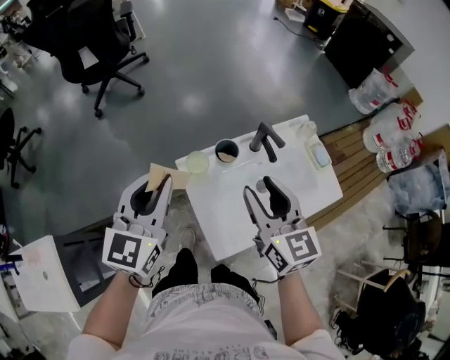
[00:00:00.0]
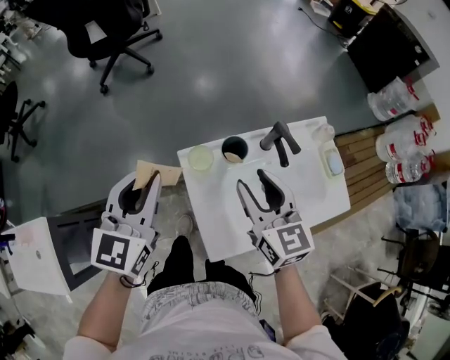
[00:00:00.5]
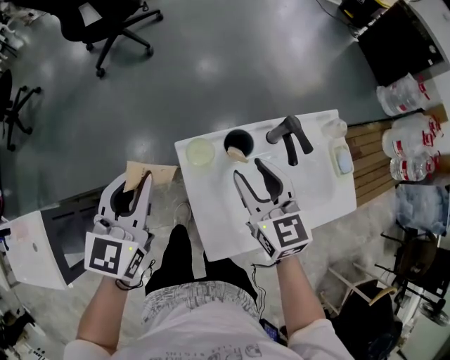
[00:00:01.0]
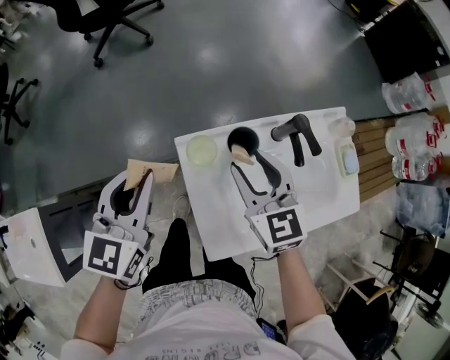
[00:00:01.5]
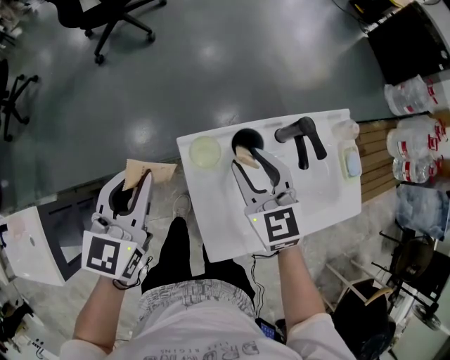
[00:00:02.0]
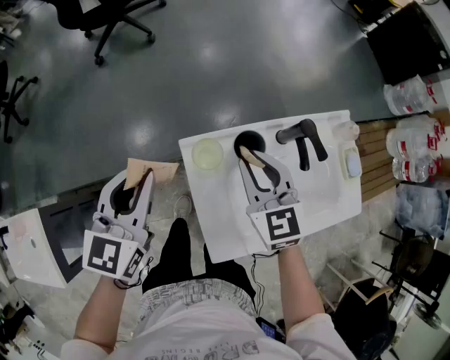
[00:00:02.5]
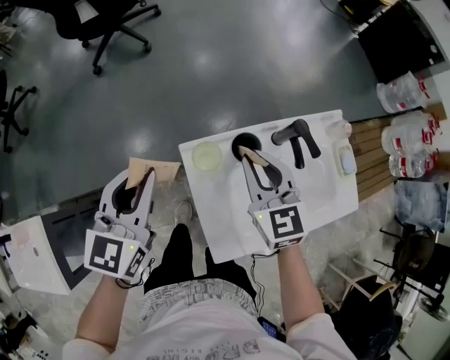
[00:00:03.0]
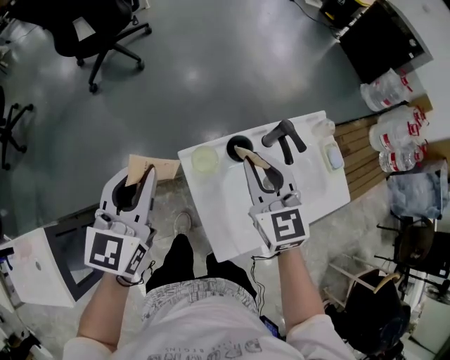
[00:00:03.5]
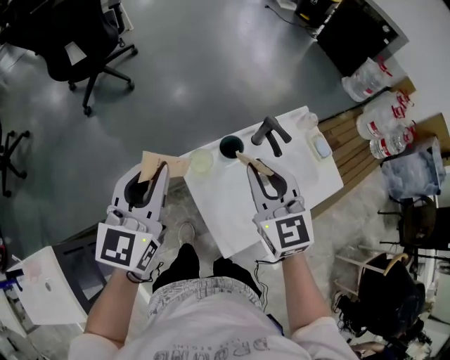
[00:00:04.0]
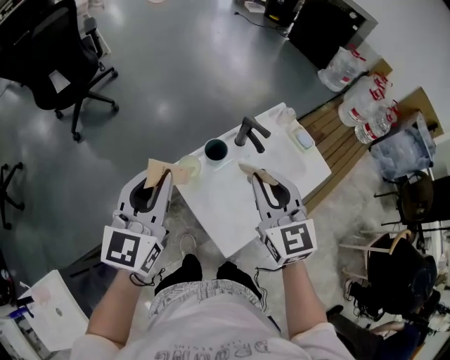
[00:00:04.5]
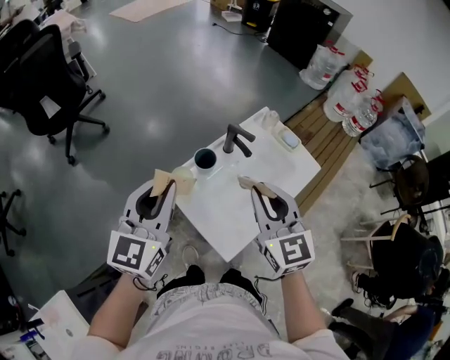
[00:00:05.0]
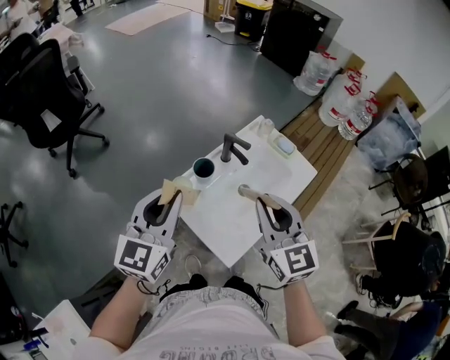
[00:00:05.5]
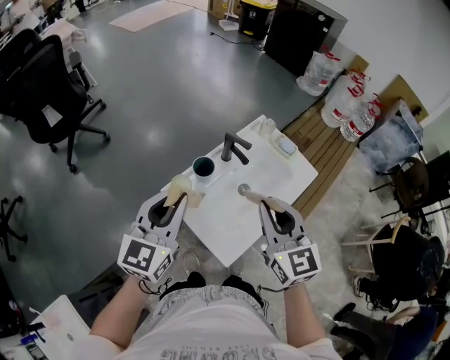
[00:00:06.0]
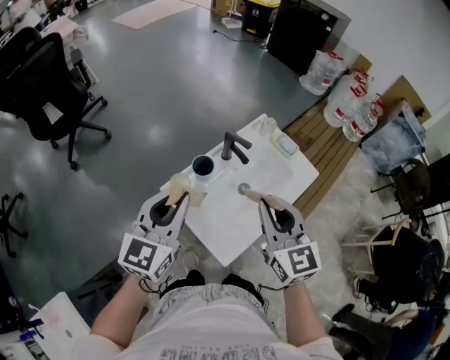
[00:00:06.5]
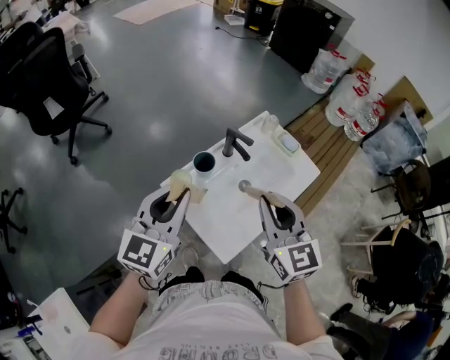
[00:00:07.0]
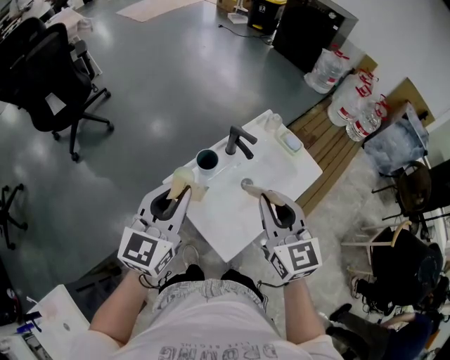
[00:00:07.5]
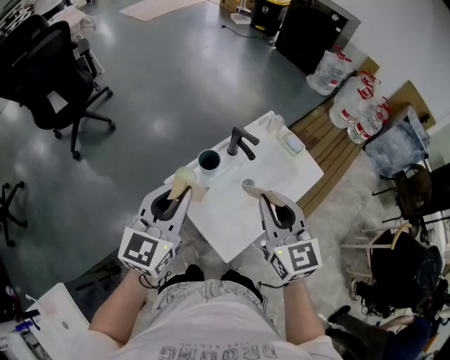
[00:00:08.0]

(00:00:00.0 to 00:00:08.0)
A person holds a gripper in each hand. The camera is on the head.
00:00:00.0 - 00:00:02.0: The left gripper moves downward, roughly 10 cm. The right gripper travels downward, forward and to the left by about 15 cm, and swivels some 20 degrees.
00:00:02.0 - 00:00:04.0: The left gripper moves upward, some 10 cm. The right gripper shifts some 15 cm upward and backward, and closes up.
00:00:04.0 - 00:00:06.0: The left gripper is displaced to the right by some 10 cm, and changes its angle by approximately 20 degrees. Meanwhile the right gripper moves to the right and backward, some 15 cm.
00:00:06.0 - 00:00:08.0: The grippers make only small movements.

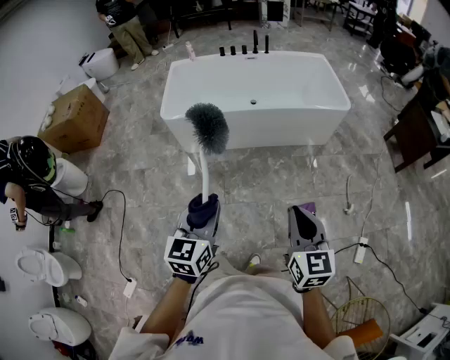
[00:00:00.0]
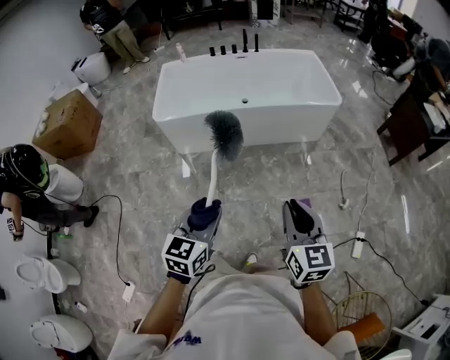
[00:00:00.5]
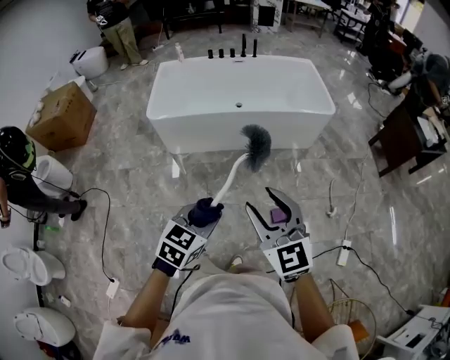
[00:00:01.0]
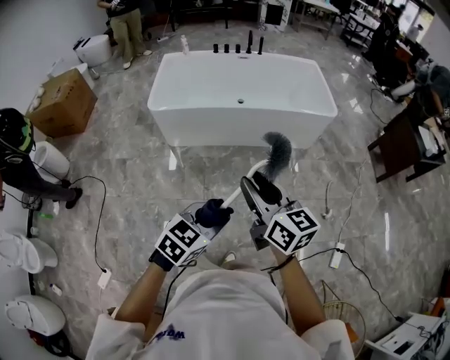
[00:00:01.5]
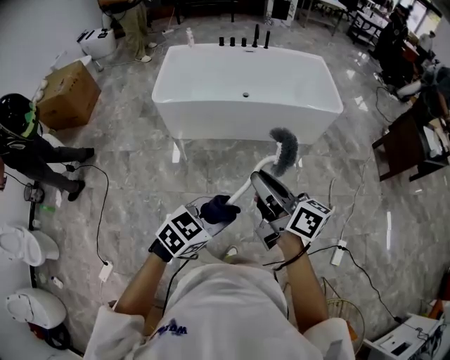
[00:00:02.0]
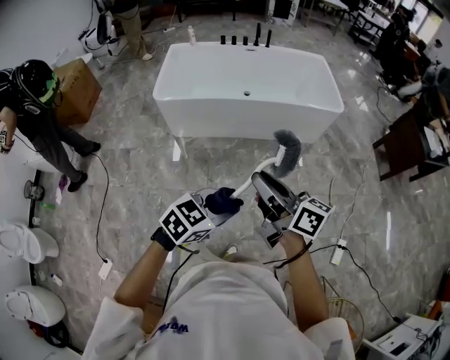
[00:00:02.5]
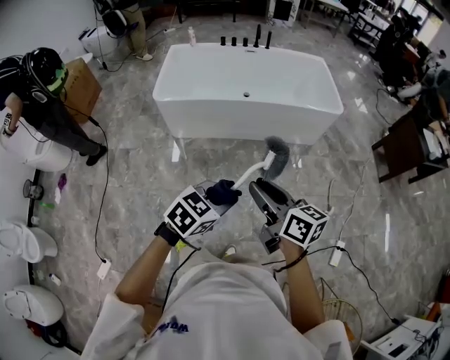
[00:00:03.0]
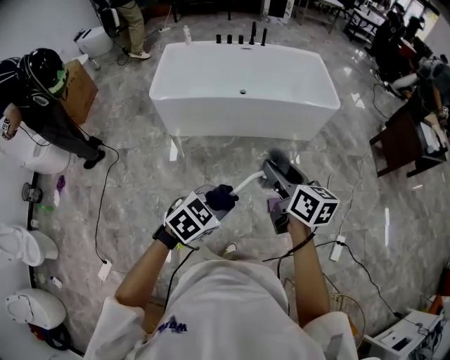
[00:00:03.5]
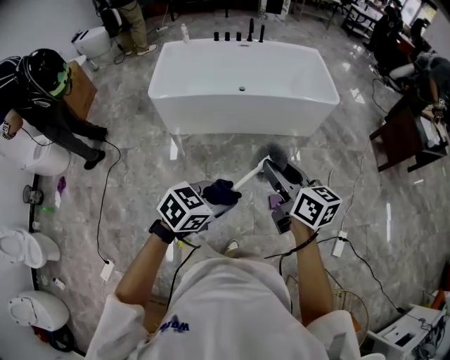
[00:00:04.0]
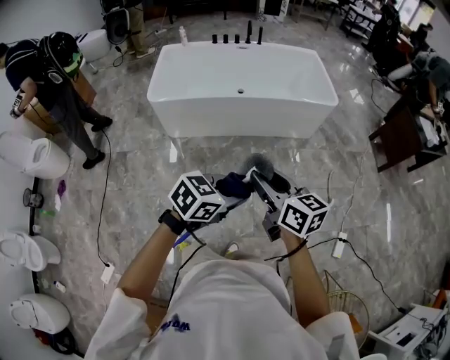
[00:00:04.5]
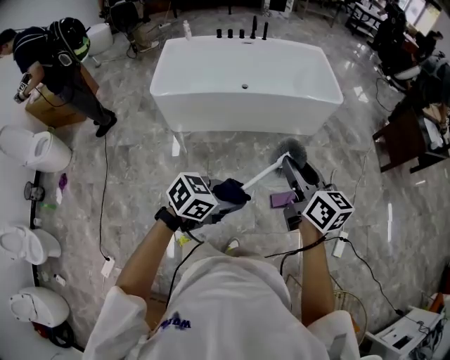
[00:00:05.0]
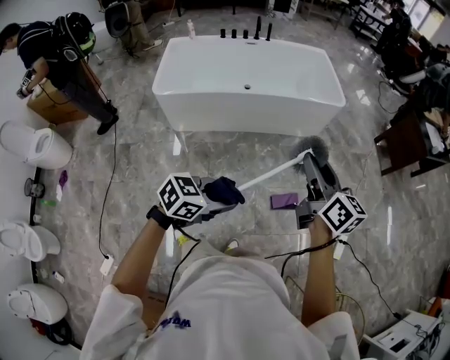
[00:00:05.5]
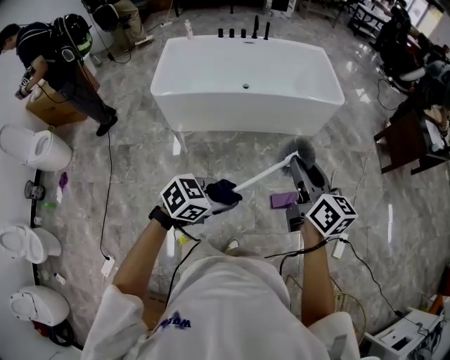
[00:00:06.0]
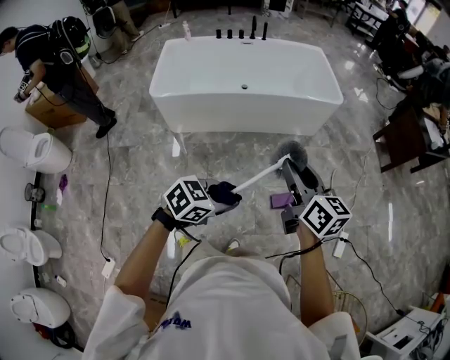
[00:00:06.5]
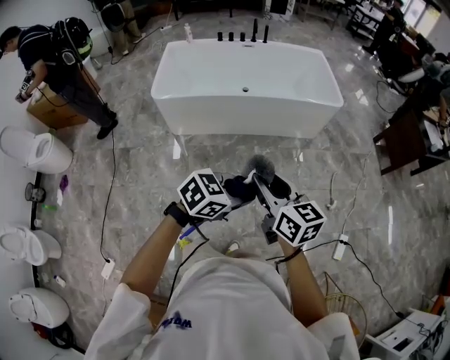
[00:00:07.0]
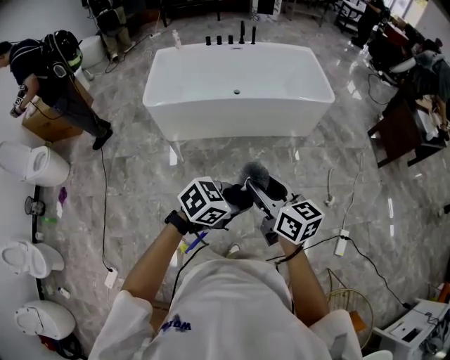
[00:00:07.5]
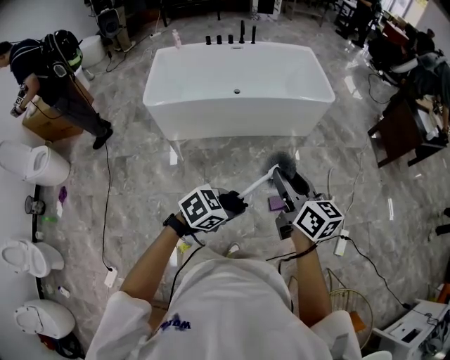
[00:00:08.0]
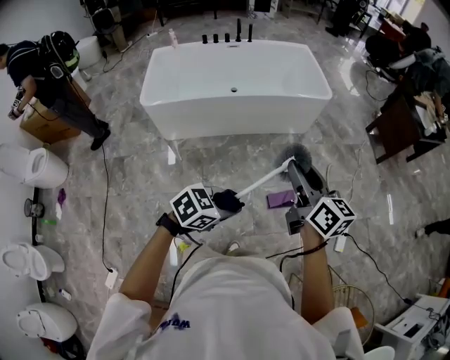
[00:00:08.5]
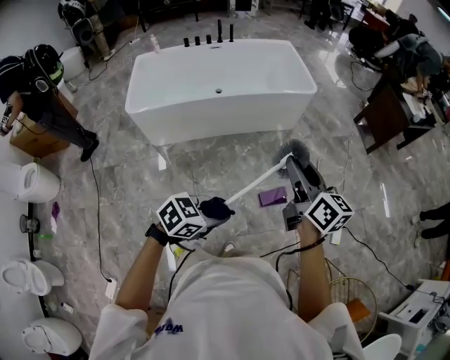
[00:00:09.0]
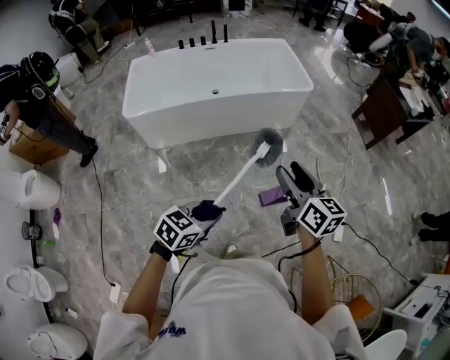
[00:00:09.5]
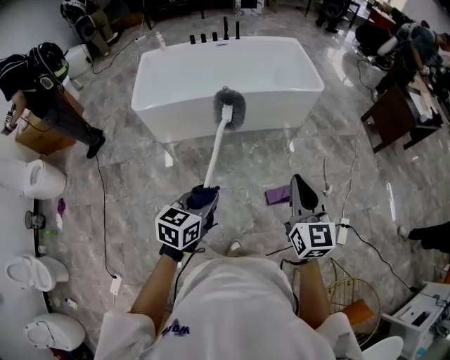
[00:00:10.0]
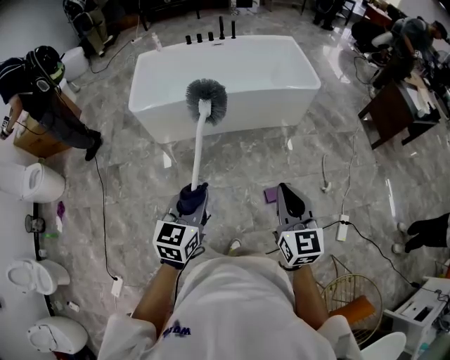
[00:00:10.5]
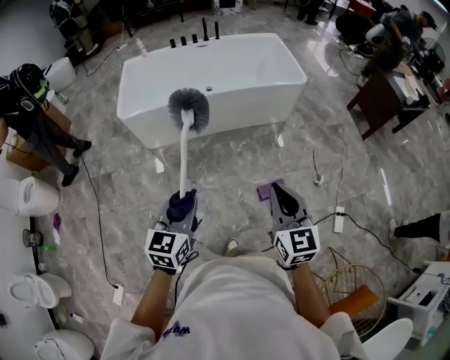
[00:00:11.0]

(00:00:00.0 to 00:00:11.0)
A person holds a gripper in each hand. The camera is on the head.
00:00:00.0 - 00:00:02.0: The left gripper moves to the right, some 10 cm, and turns by some 40 degrees; the right gripper goes roughly 10 cm to the left and forward, changes its angle by approximately 50 degrees, and opens, then closes again.
00:00:02.0 - 00:00:03.5: The right gripper shifts by some 5 cm, changes its angle by about 30 degrees, and opens its fingers.
00:00:03.5 - 00:00:05.5: The right gripper is displaced to the right by some 10 cm, while the left gripper turns by approximately 20 degrees.
00:00:05.5 - 00:00:07.5: The left gripper is displaced to the right by about 5 cm, while the right gripper heads backward, to the left and downward, covering approximately 15 cm.
00:00:07.5 - 00:00:09.0: The left gripper shifts by approximately 5 cm. The right gripper is displaced to the right, forward and upward by roughly 15 cm, and changes its angle by roughly 20 degrees.
00:00:09.0 - 00:00:11.0: The right gripper shifts by roughly 10 cm, rotates roughly 30 degrees, and closes. The left gripper ends up roughly 10 cm from where it was, and turns by approximately 50 degrees.

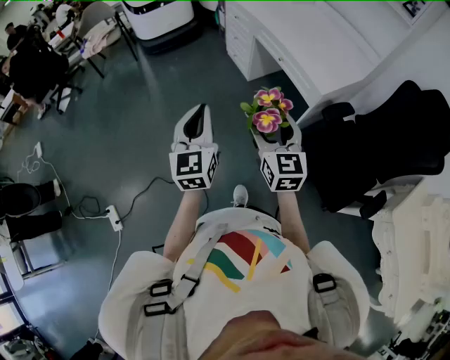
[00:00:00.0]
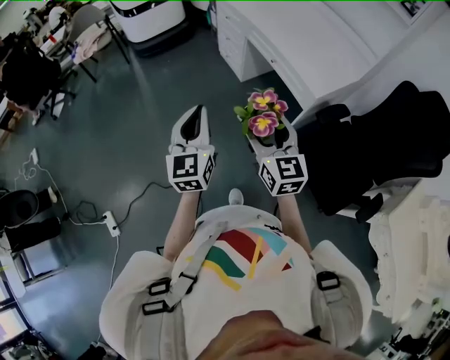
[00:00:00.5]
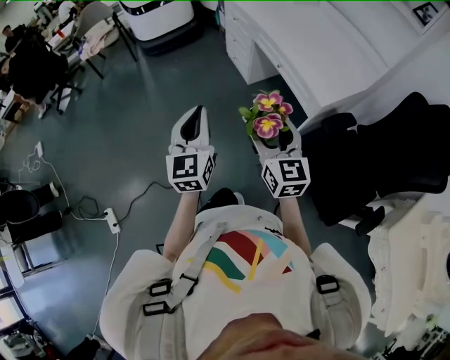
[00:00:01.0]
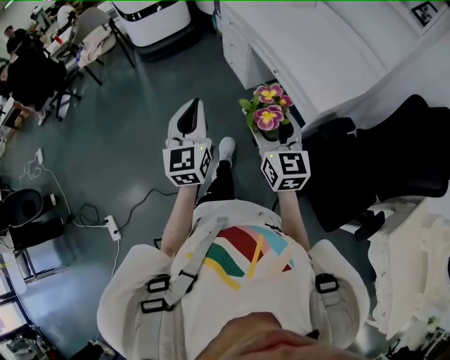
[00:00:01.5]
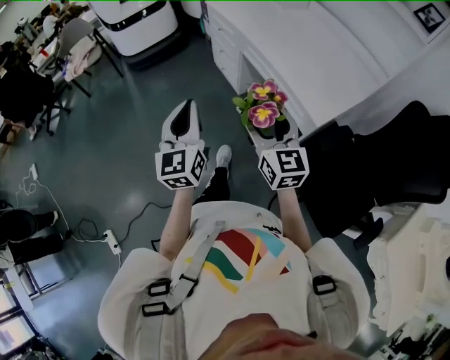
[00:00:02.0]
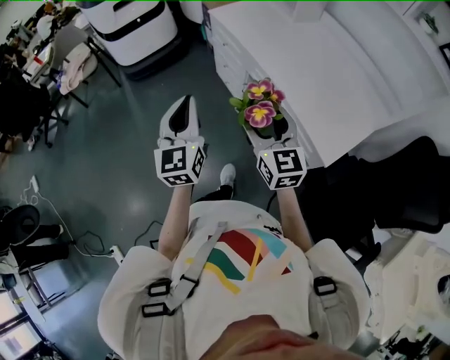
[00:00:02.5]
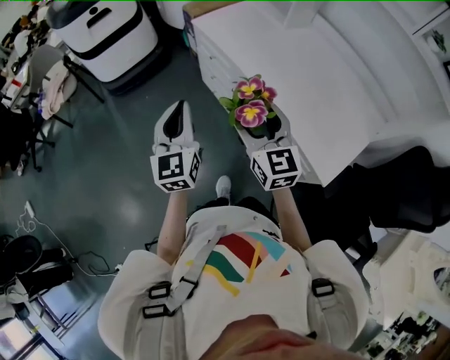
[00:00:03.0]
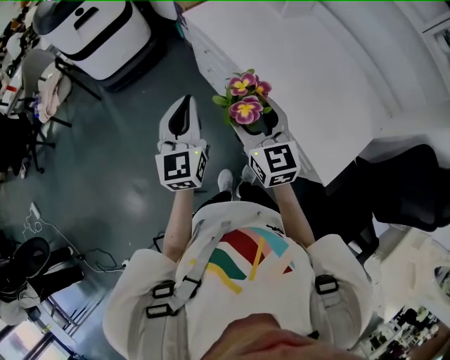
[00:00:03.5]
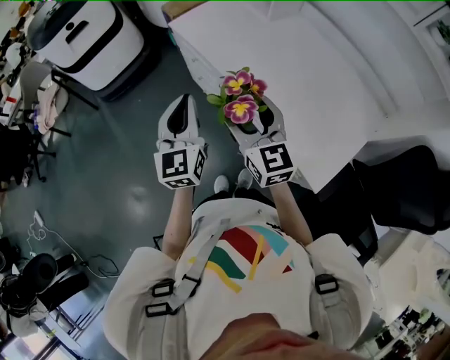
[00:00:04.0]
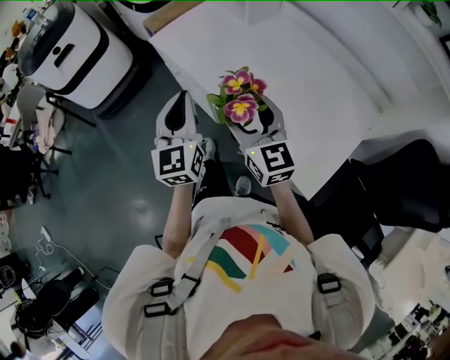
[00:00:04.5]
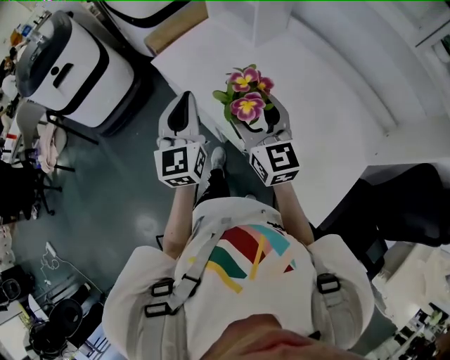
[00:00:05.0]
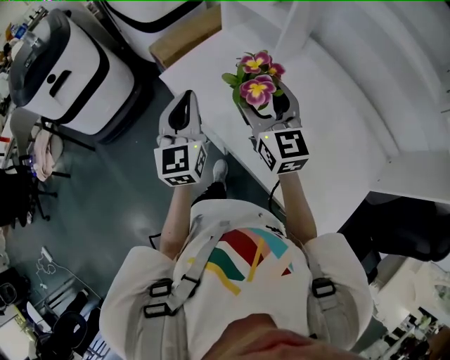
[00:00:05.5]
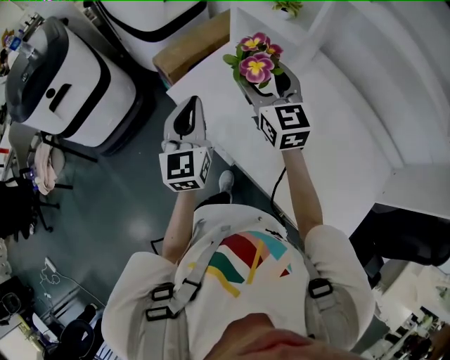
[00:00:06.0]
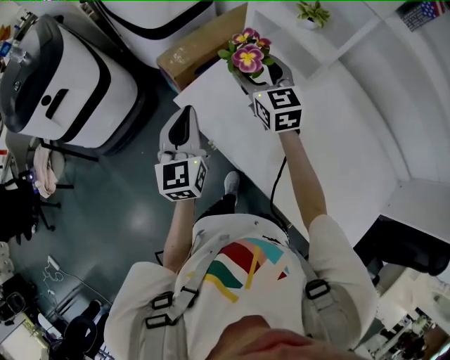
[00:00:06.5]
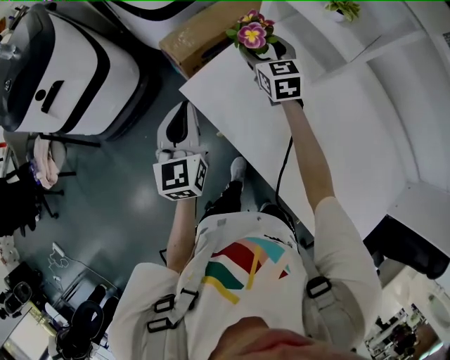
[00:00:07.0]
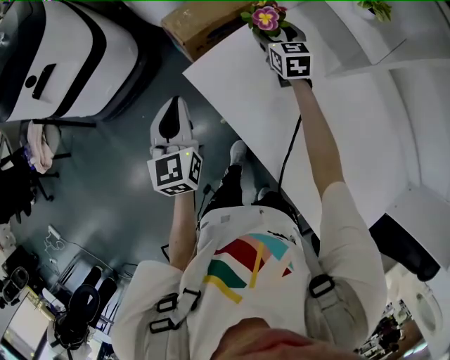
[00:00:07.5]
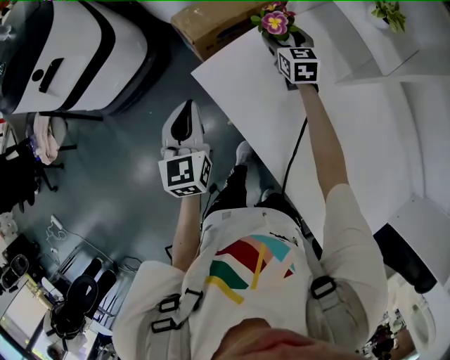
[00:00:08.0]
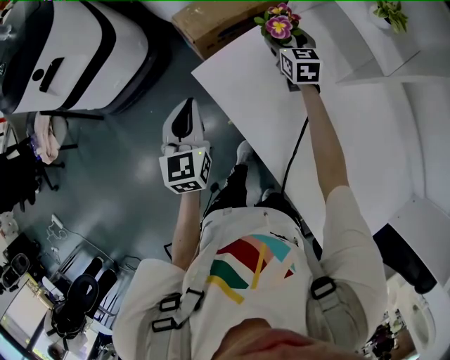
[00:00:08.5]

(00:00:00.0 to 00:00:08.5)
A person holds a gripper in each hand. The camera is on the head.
00:00:00.0 - 00:00:02.0: Both grippers travel together forward, some 20 cm.
00:00:02.0 - 00:00:04.0: Both grippers travel together forward, some 35 cm.
00:00:04.0 - 00:00:06.5: Both grippers are carried forward, approximately 50 cm.
00:00:06.5 - 00:00:08.5: The right gripper goes roughly 25 cm downward and forward. Meanwhile the left gripper is displaced downward and to the left by approximately 15 cm.
